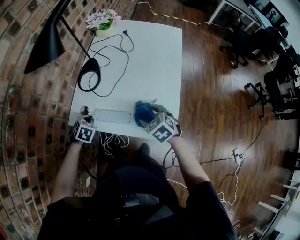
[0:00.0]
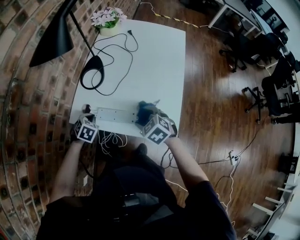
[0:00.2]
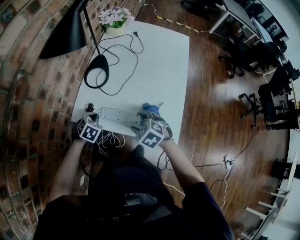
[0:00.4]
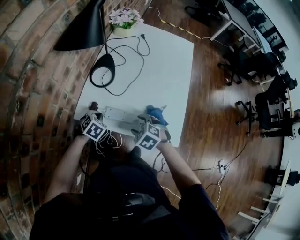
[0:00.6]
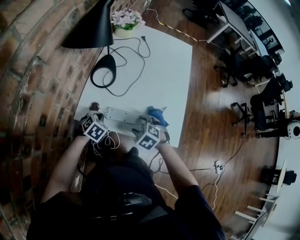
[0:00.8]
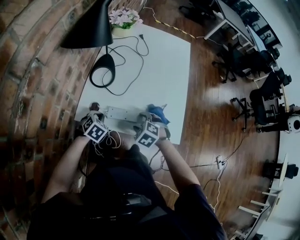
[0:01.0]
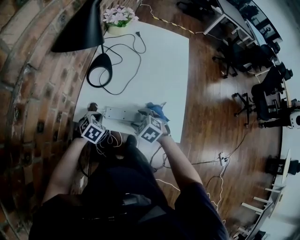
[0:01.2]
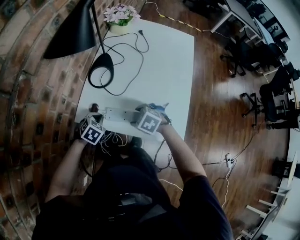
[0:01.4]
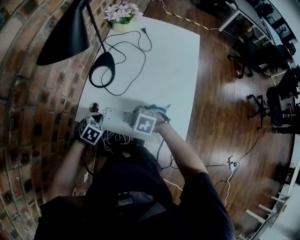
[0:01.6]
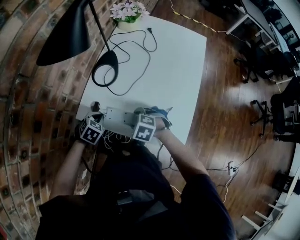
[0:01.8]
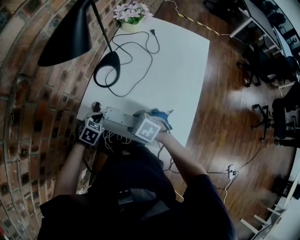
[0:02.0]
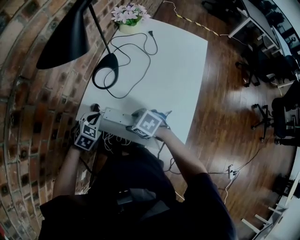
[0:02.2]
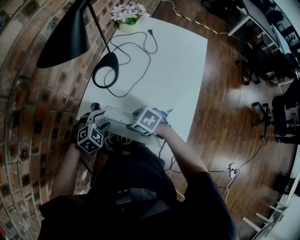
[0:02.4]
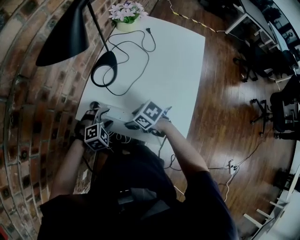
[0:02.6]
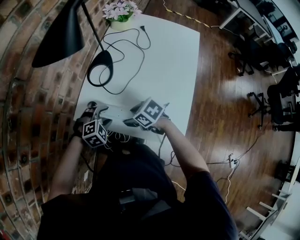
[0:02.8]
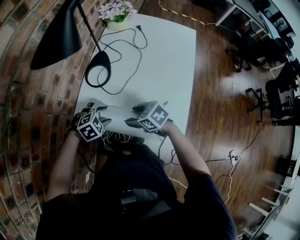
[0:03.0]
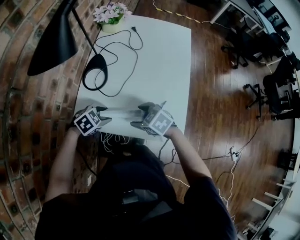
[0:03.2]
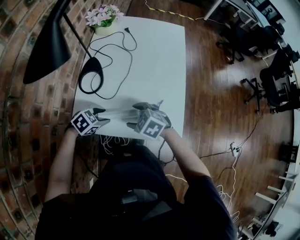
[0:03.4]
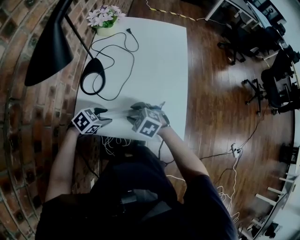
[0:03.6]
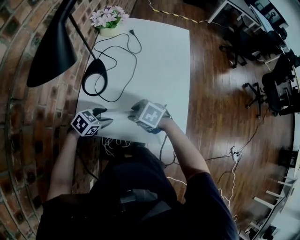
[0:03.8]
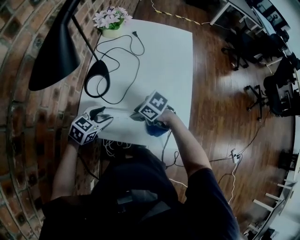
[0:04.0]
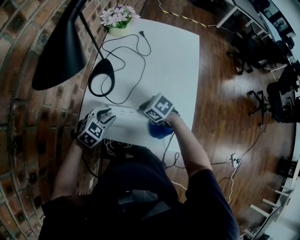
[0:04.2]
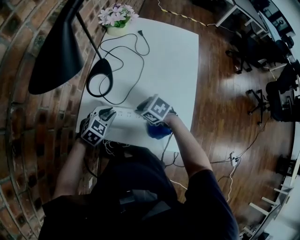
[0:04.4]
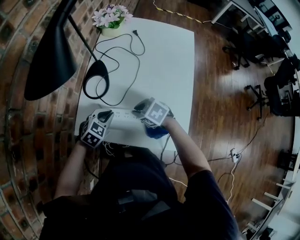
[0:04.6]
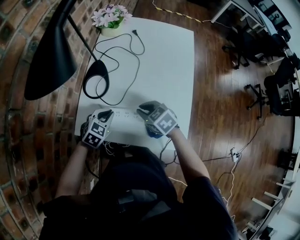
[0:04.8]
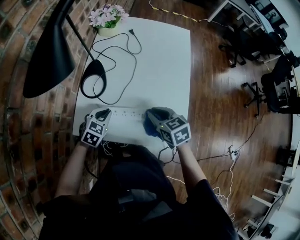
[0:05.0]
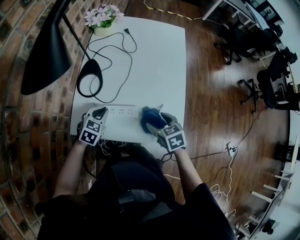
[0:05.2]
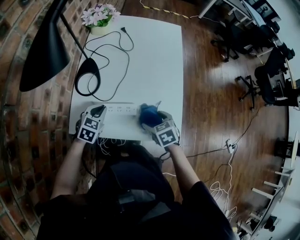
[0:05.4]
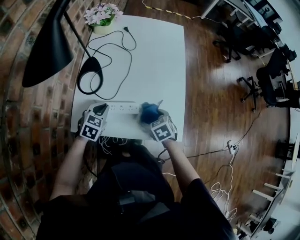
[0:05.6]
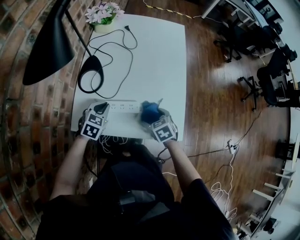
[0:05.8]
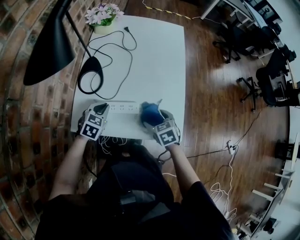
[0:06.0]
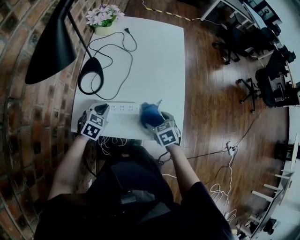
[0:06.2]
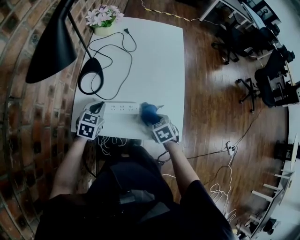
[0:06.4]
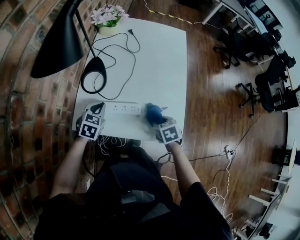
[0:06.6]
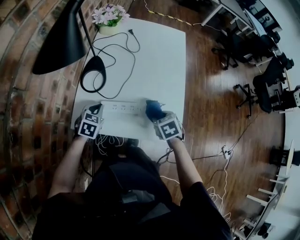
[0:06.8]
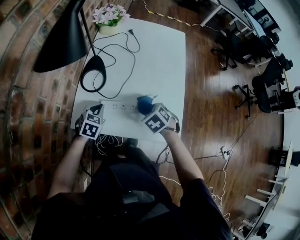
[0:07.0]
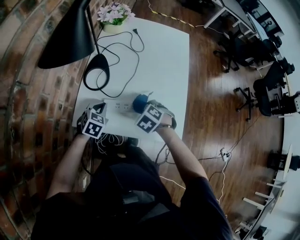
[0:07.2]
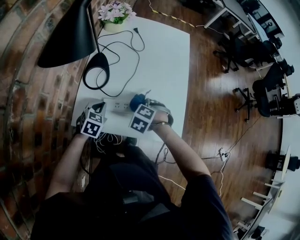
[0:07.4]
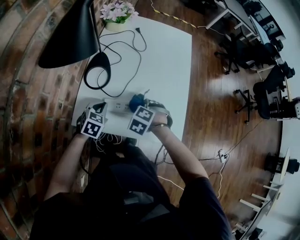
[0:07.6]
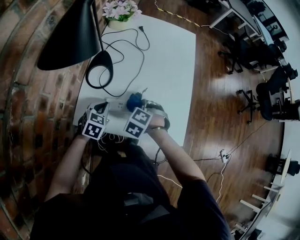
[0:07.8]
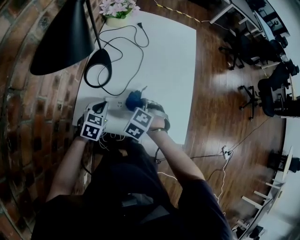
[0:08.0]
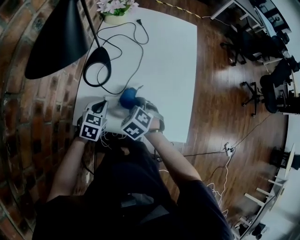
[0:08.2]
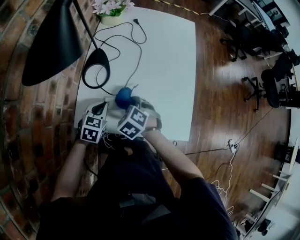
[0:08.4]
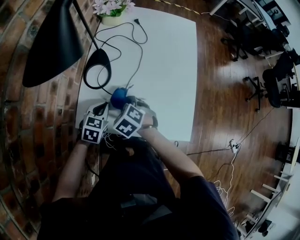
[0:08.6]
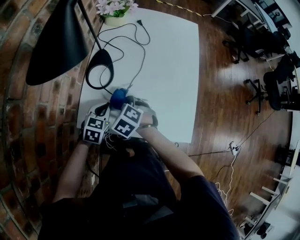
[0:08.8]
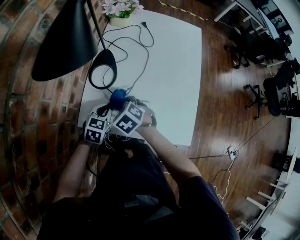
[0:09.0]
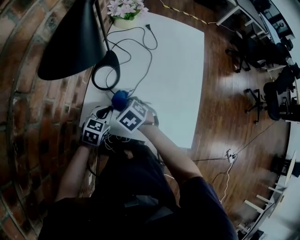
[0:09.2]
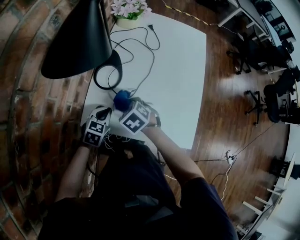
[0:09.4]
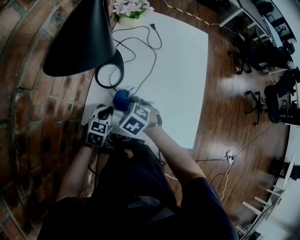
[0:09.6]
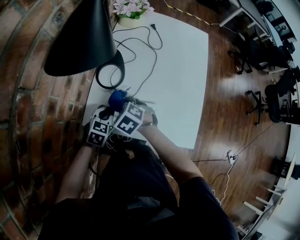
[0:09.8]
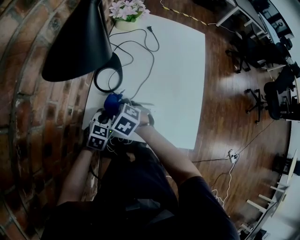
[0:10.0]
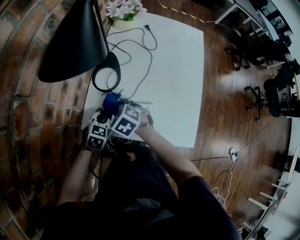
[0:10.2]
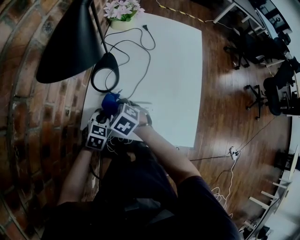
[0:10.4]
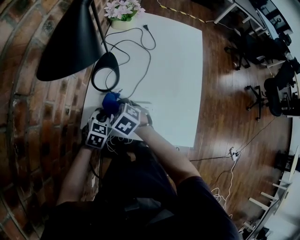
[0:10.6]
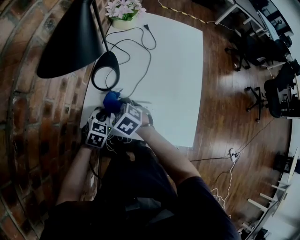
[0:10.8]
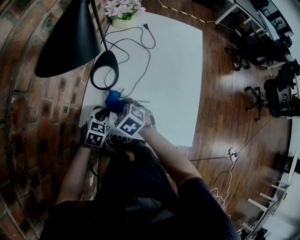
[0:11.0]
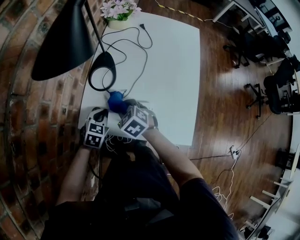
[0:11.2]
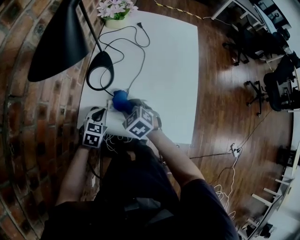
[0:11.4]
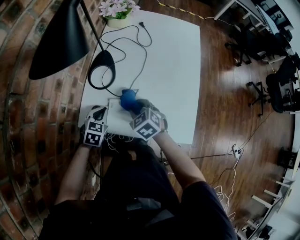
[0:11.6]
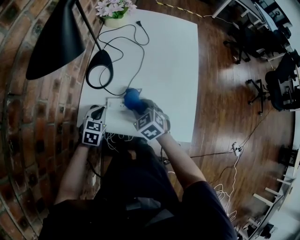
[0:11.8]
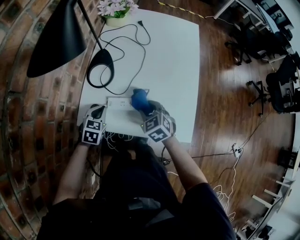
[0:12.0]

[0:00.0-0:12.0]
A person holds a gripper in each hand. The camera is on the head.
0:00.0 to 0:01.6: The right gripper shifts by roughly 15 cm, and changes its angle by approximately 30 degrees.
0:01.6 to 0:03.0: The right gripper shifts by some 5 cm, and rotates some 30 degrees. The left gripper shifts by some 5 cm, rotates approximately 30 degrees, and opens its fingers.
0:03.0 to 0:04.4: The right gripper shifts by approximately 10 cm, and closes up. The left gripper ends up approximately 5 cm from where it was, turns by about 20 degrees, and closes.
0:04.4 to 0:06.0: The right gripper moves some 5 cm upward and comes back, turns by about 40 degrees, and opens its fingers.
0:06.0 to 0:07.6: The right gripper changes place by approximately 10 cm, twists roughly 50 degrees counterclockwise, seen from behind, and closes up.
0:07.6 to 0:09.0: The right gripper shifts roughly 15 cm to the left, and changes its angle by some 30 degrees.
0:09.0 to 0:10.4: The right gripper ends up about 5 cm from where it was.
0:10.4 to 0:12.0: The right gripper shifts approximately 15 cm to the right.

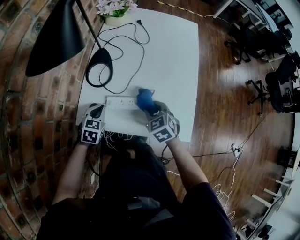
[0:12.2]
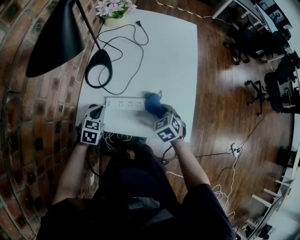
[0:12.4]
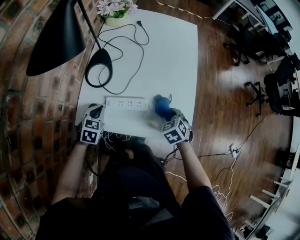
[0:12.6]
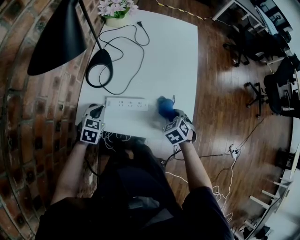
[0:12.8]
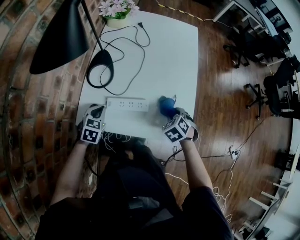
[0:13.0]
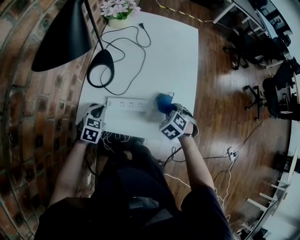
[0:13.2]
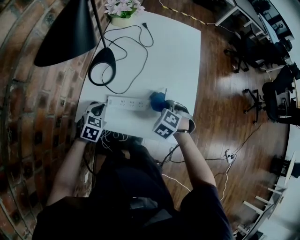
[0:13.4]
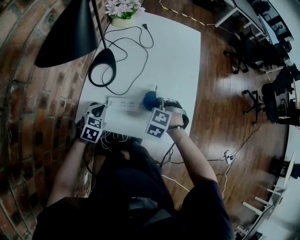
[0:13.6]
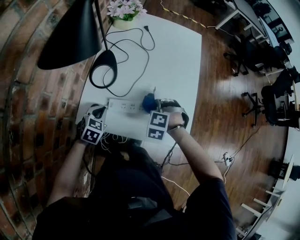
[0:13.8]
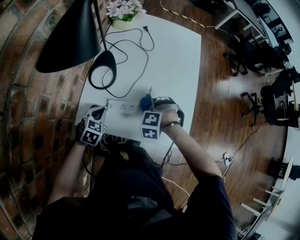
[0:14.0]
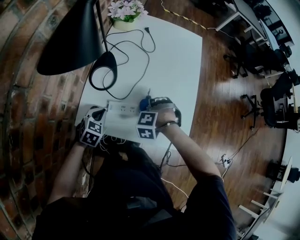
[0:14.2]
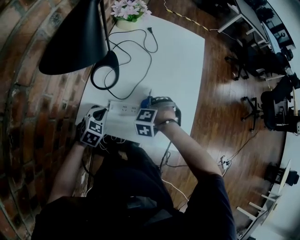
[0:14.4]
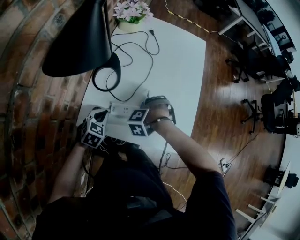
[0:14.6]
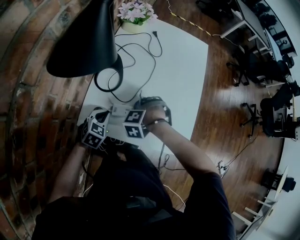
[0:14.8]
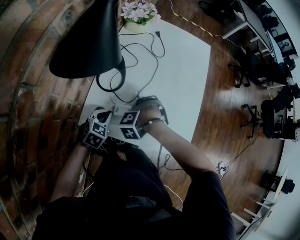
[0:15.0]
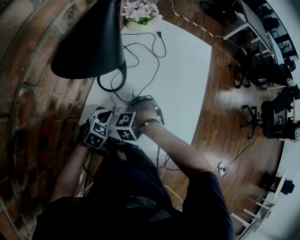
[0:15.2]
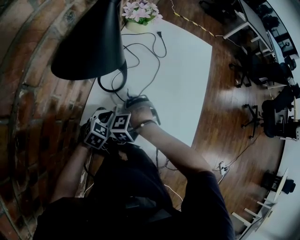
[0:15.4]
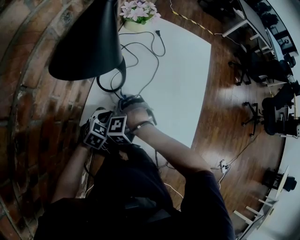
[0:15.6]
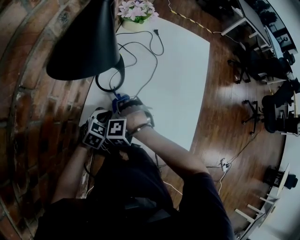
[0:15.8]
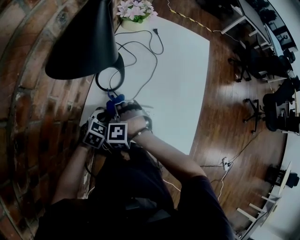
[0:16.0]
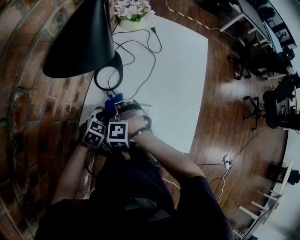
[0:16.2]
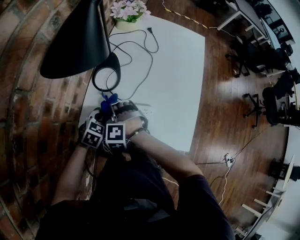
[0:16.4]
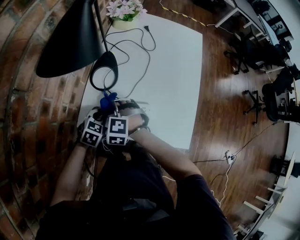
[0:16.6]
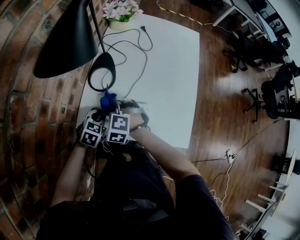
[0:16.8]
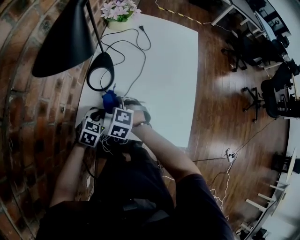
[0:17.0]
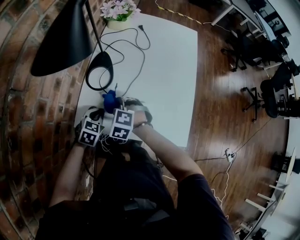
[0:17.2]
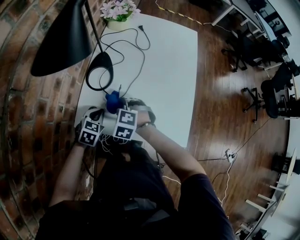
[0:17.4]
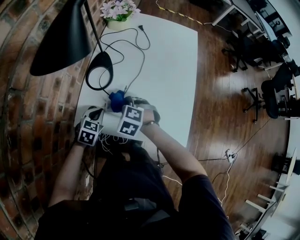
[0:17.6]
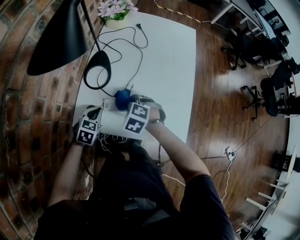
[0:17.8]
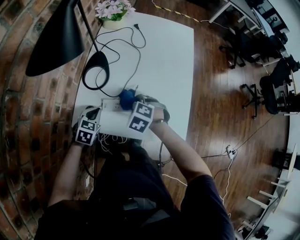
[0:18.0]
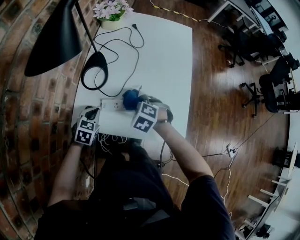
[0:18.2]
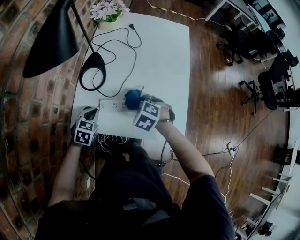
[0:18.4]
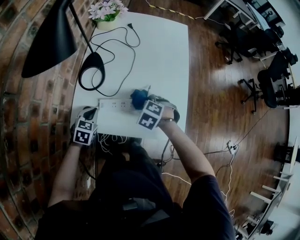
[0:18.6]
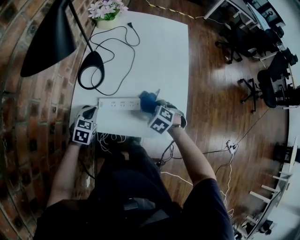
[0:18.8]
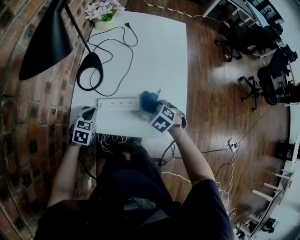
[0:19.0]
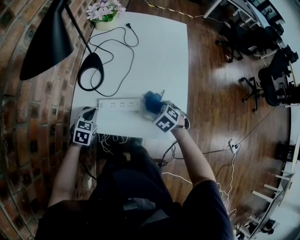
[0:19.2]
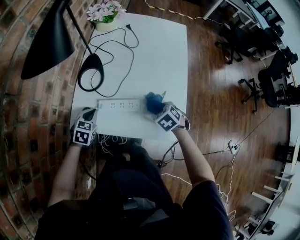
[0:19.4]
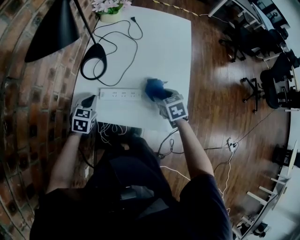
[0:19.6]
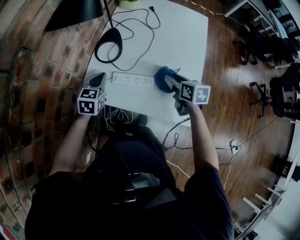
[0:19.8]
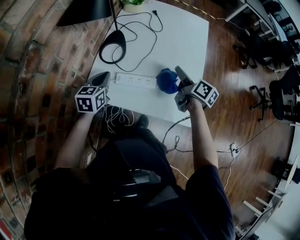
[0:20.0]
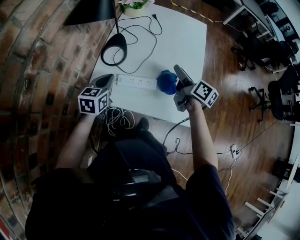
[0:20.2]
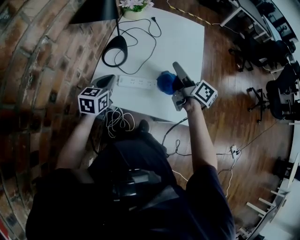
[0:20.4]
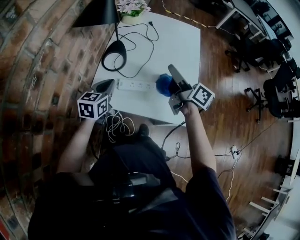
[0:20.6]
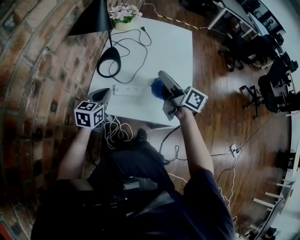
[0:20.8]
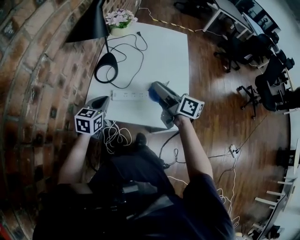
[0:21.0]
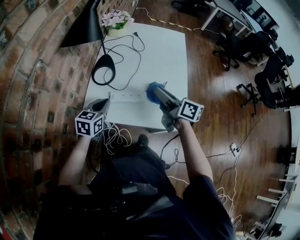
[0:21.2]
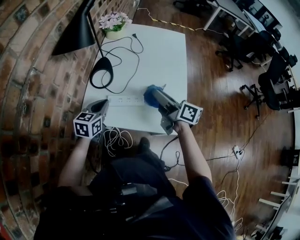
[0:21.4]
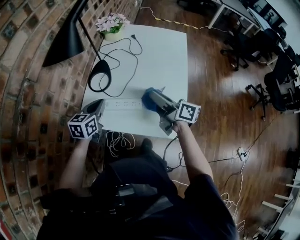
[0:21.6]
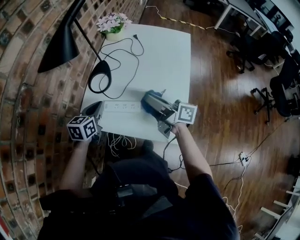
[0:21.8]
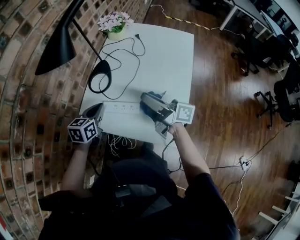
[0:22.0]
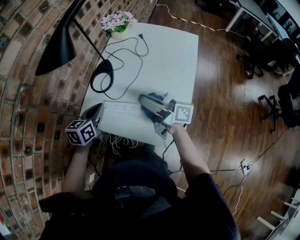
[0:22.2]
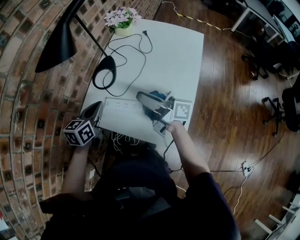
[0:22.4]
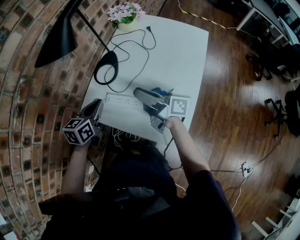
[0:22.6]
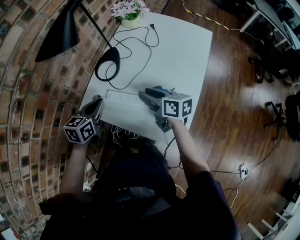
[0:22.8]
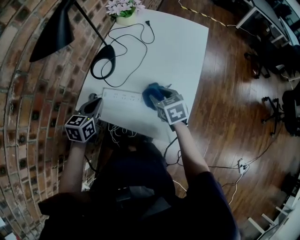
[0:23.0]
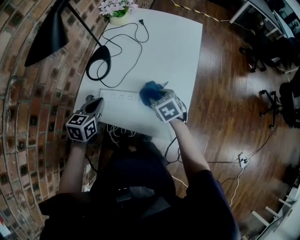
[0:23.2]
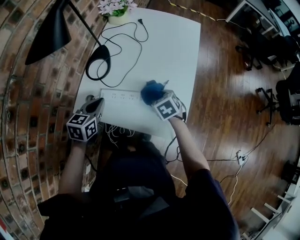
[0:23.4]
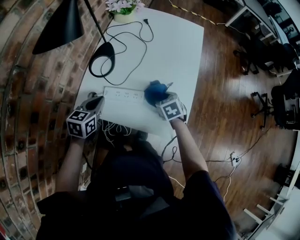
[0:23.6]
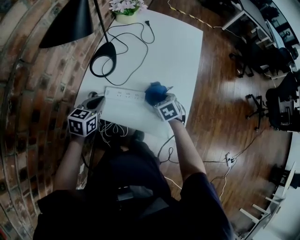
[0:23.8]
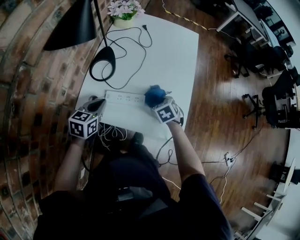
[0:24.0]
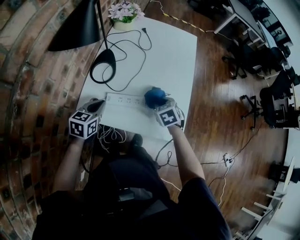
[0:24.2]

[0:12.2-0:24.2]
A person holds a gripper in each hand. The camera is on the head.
0:12.2 to 0:13.8: The right gripper goes to the right and returns, roughly 15 cm each way, and rolls counterclockwise, seen from behind, by some 50 degrees.
0:13.8 to 0:15.2: The right gripper ends up roughly 10 cm from where it was, and changes its angle by about 30 degrees.
0:15.2 to 0:16.6: The right gripper changes place by some 10 cm, and turns by about 40 degrees.
0:16.6 to 0:18.2: The right gripper is displaced to the right by approximately 15 cm, and rotates about 30 degrees.
0:18.2 to 0:19.8: The right gripper heads to the right and upward, covering roughly 15 cm, and rolls clockwise, seen from behind, by about 60 degrees; the left gripper travels upward by roughly 5 cm.
0:19.8 to 0:21.2: The right gripper moves upward, to the left and backward, approximately 15 cm, and points its fingers about 30 degrees further upward; the left gripper moves backward, some 5 cm.
0:21.2 to 0:22.6: The right gripper heads forward, covering some 5 cm, and changes its angle by about 40 degrees; the left gripper changes its angle by approximately 20 degrees.
0:22.6 to 0:24.2: The right gripper shifts some 15 cm downward, and angles its fingers downward, by roughly 70 degrees. Meanwhile the left gripper shifts roughly 5 cm downward.
